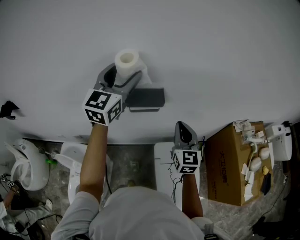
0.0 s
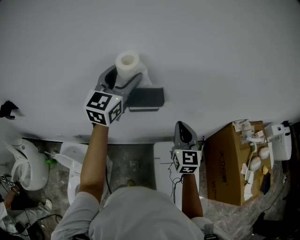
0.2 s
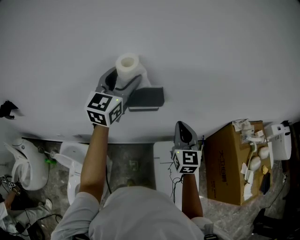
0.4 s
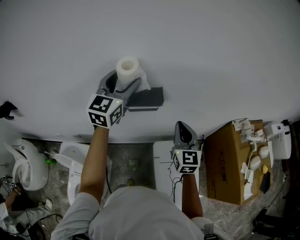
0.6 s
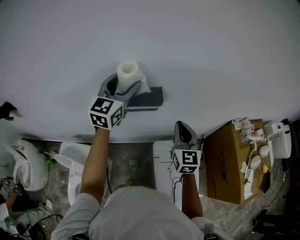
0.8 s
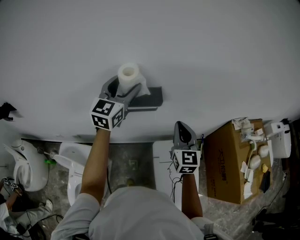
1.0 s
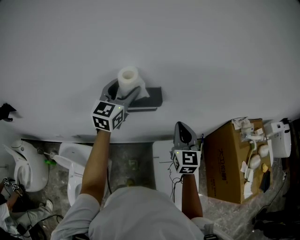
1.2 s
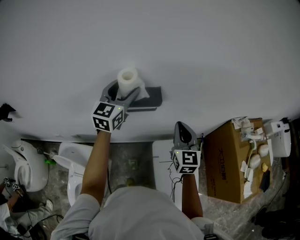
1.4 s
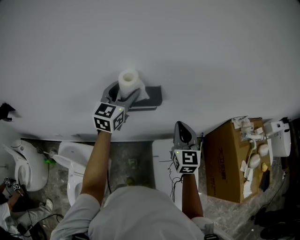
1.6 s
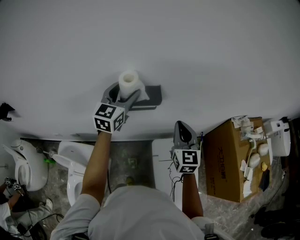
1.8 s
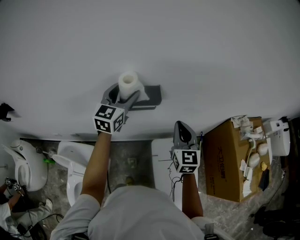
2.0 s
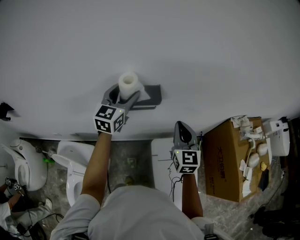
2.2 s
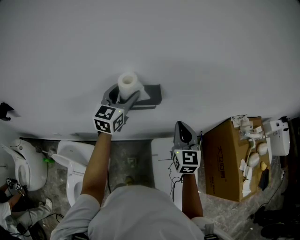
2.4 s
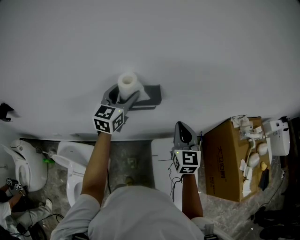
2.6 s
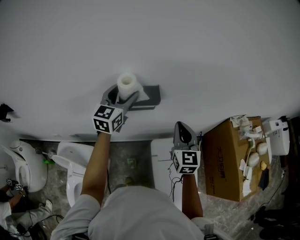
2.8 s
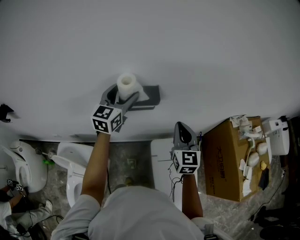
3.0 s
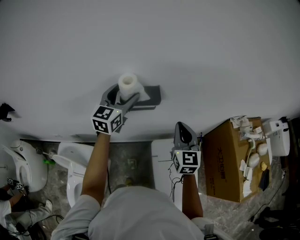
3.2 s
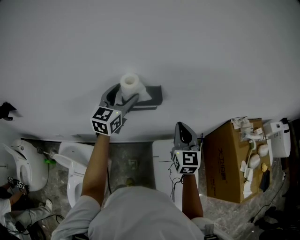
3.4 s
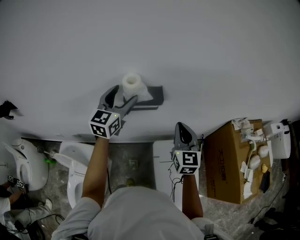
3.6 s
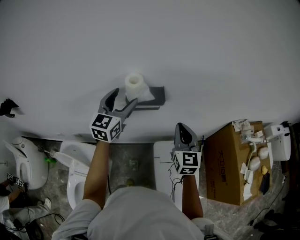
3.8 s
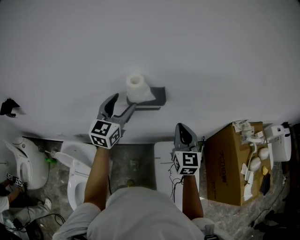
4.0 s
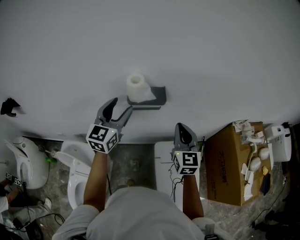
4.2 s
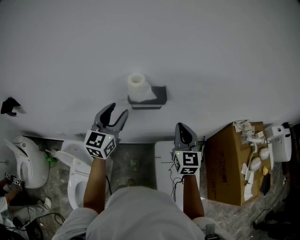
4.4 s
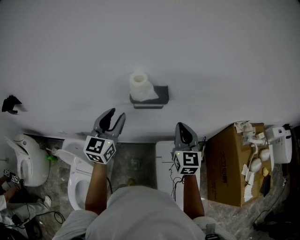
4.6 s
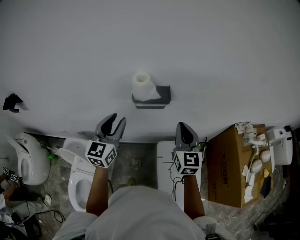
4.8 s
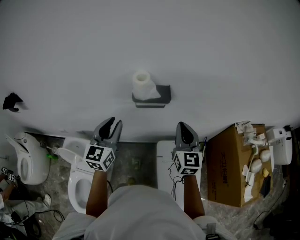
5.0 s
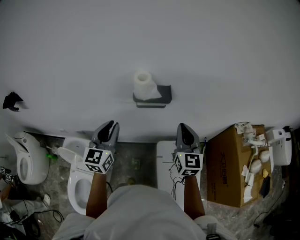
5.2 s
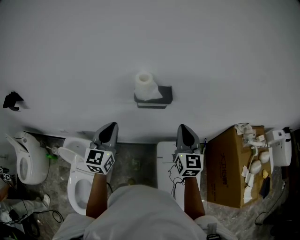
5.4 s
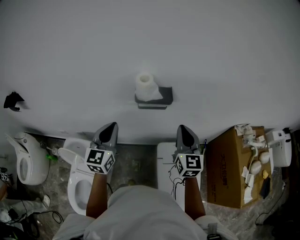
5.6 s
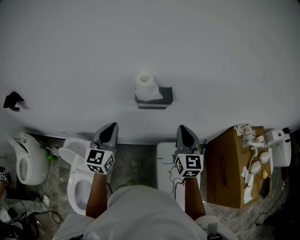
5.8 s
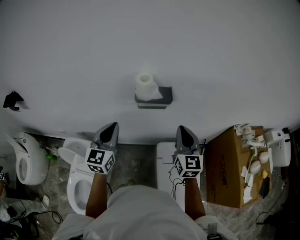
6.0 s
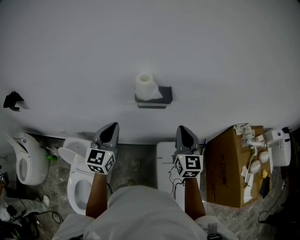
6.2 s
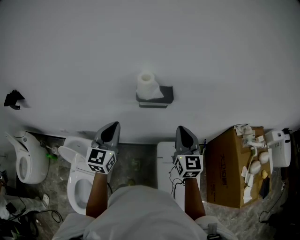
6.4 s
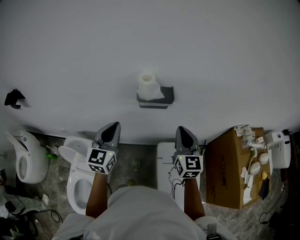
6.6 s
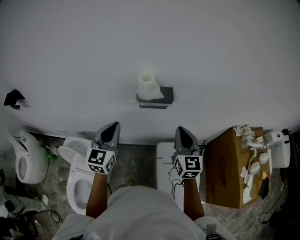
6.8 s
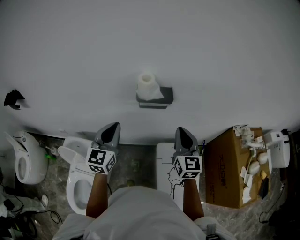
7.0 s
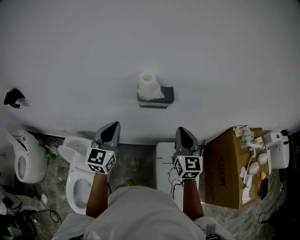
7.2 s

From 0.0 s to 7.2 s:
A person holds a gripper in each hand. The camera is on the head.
From 0.0 s to 1.4 s: The left gripper heads downward, covering approximately 10 cm.
From 1.4 s to 2.8 s: The grippers stay close to where they were, moving slightly.
From 2.8 s to 4.4 s: The left gripper shifts about 10 cm backward.
From 4.4 s to 5.8 s: The left gripper heads backward, covering about 5 cm, and closes.
From 5.8 s to 7.2 s: The grippers make only small movements.

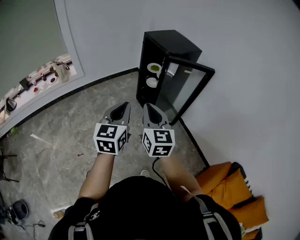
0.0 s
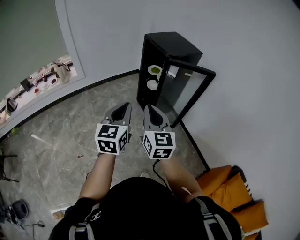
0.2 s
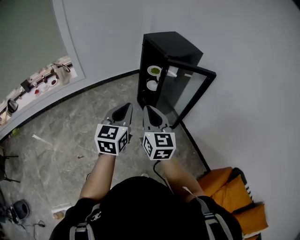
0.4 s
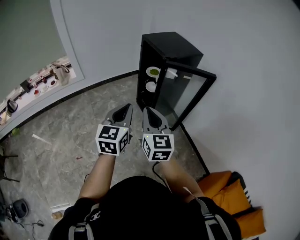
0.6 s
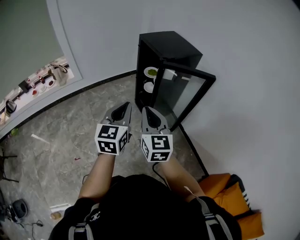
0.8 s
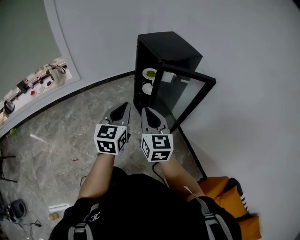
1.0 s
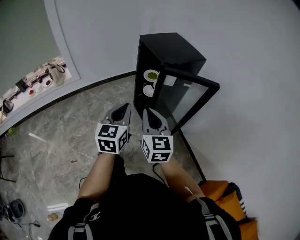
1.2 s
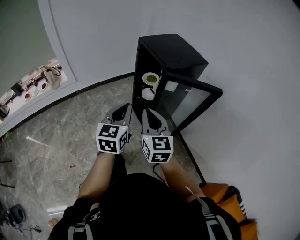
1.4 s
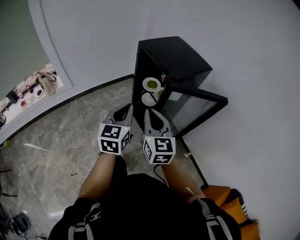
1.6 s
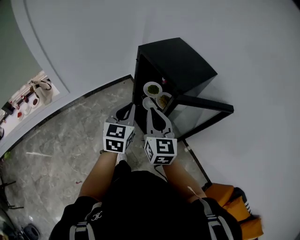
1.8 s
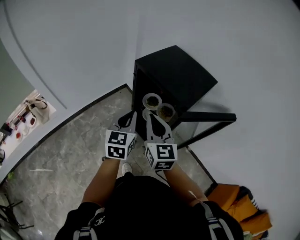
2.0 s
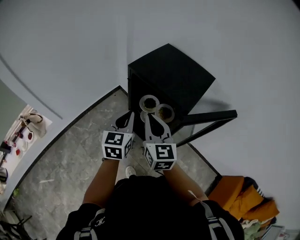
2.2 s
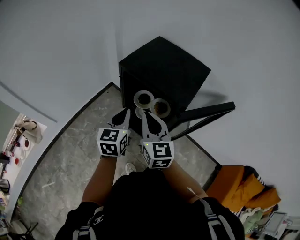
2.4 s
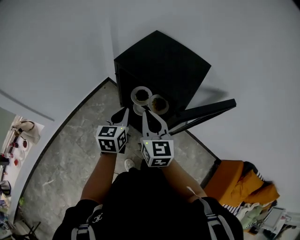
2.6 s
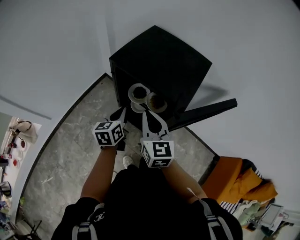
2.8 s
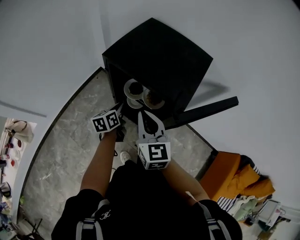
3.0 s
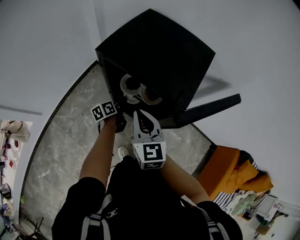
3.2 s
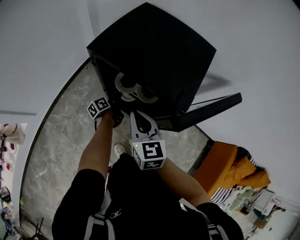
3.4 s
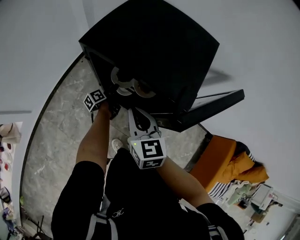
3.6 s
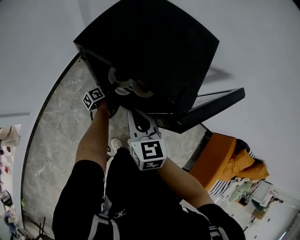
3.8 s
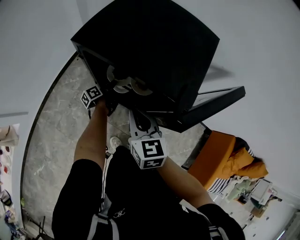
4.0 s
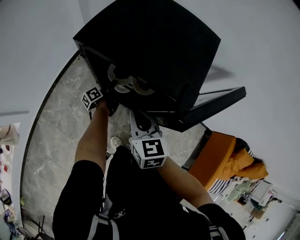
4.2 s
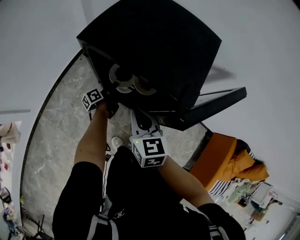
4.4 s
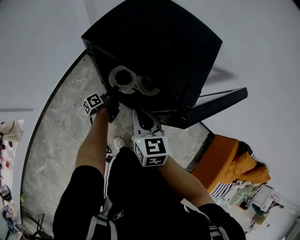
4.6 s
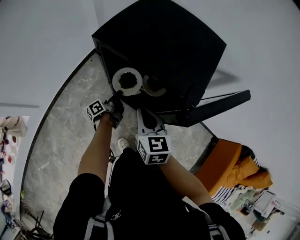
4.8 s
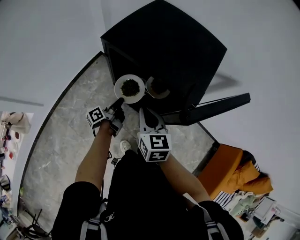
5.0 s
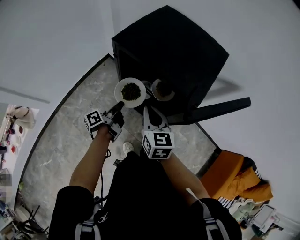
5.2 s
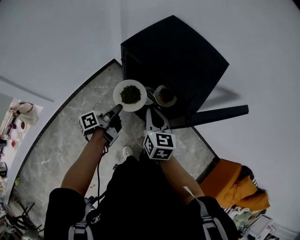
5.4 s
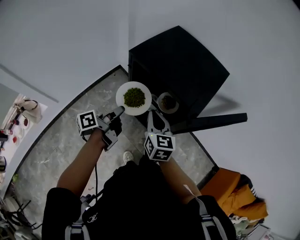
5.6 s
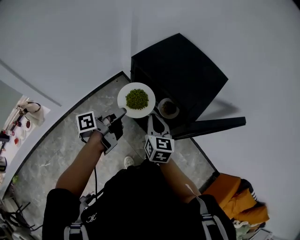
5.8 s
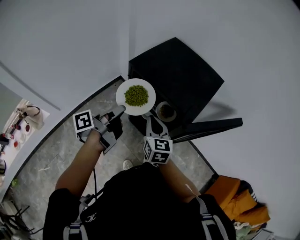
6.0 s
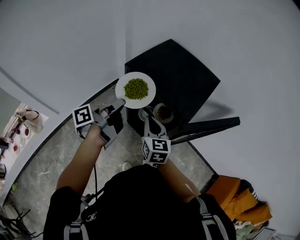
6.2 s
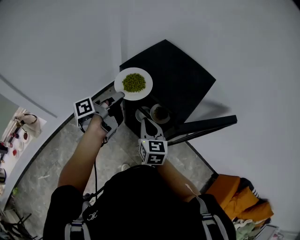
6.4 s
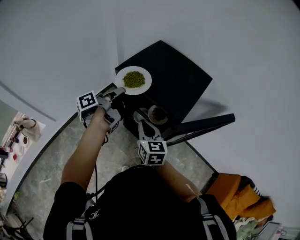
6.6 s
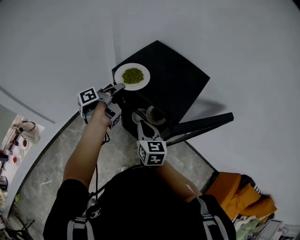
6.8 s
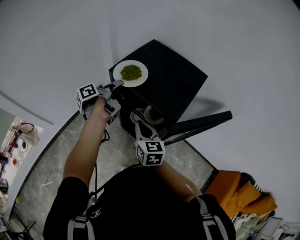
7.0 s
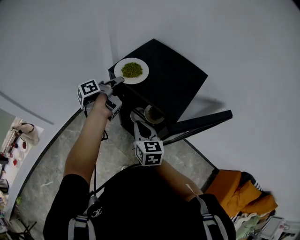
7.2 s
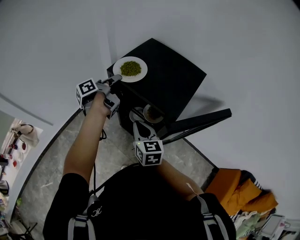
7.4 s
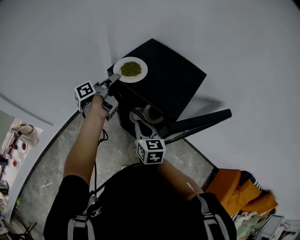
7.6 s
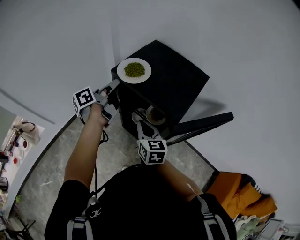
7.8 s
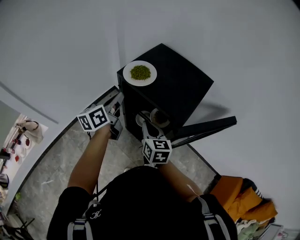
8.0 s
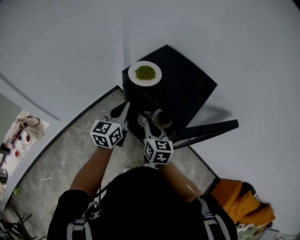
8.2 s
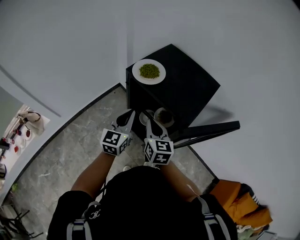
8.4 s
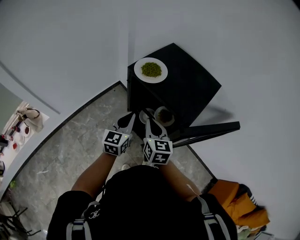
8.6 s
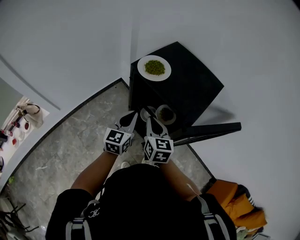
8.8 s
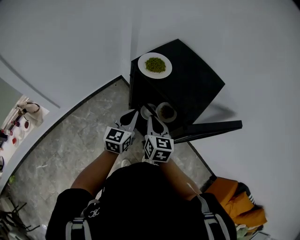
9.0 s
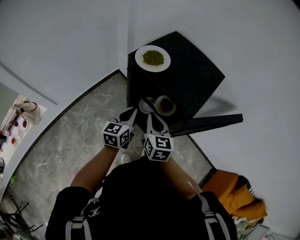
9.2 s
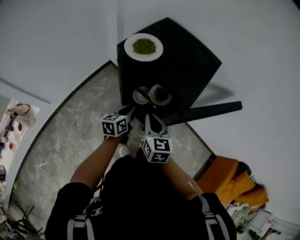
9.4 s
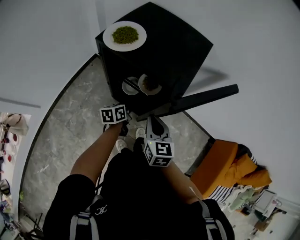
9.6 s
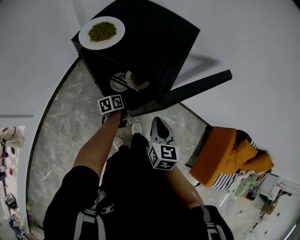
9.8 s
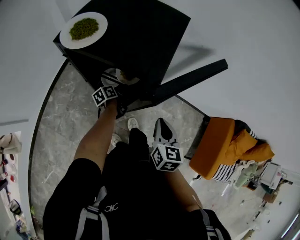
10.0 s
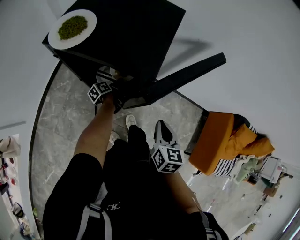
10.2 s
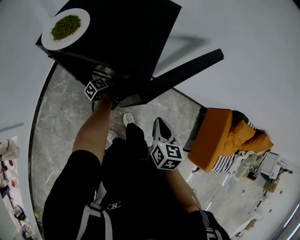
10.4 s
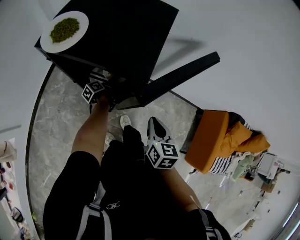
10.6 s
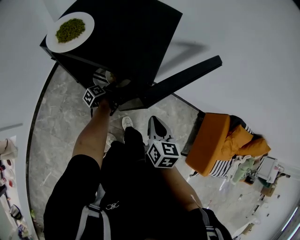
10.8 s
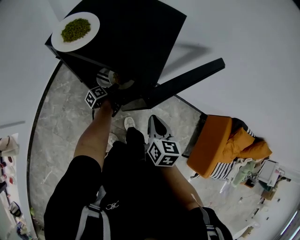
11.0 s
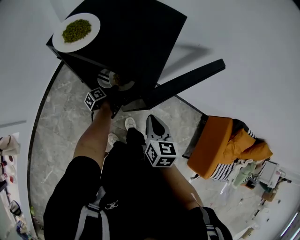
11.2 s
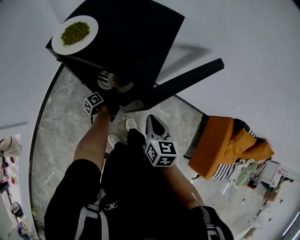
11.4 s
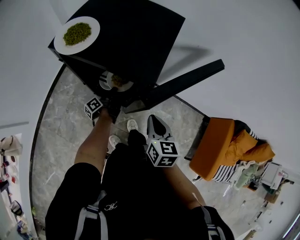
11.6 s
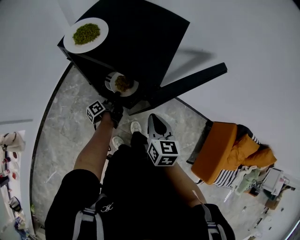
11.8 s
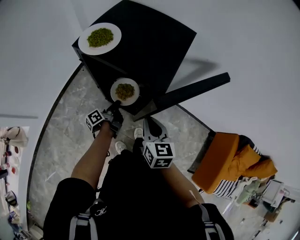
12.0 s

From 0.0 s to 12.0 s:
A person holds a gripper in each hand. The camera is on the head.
From 0.0 s to 1.6 s: The grippers both shift forward by some 30 cm.
From 1.6 s to 3.0 s: The right gripper goes approximately 25 cm forward, and turns by some 20 degrees, while the left gripper heads forward and downward, covering some 40 cm, and rotates about 40 degrees.
From 3.0 s to 4.4 s: The left gripper goes some 20 cm downward and forward, rotates approximately 40 degrees, and opens and closes again. The right gripper moves downward, approximately 10 cm.
From 4.4 s to 6.0 s: The left gripper heads upward and backward, covering approximately 40 cm, while the right gripper moves upward, about 5 cm.
From 6.0 s to 7.6 s: The left gripper goes approximately 15 cm forward, and opens its fingers.
From 7.6 s to 9.0 s: The left gripper is displaced backward and downward by some 15 cm, rolls clockwise, seen from behind, by approximately 70 degrees, and closes up.
From 9.0 s to 10.4 s: The right gripper changes place by some 30 cm, and swivels some 40 degrees; the left gripper moves downward, approximately 35 cm, twists approximately 70 degrees counterclockwise, seen from behind, and opens up.
From 10.4 s to 12.0 s: The right gripper shifts some 10 cm to the left, and swivels roughly 20 degrees, while the left gripper heads upward, backward and to the left, covering roughly 15 cm, changes its angle by about 20 degrees, and closes its fingers.

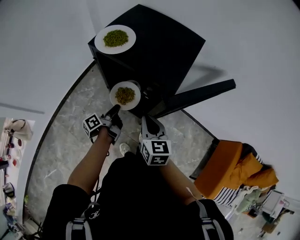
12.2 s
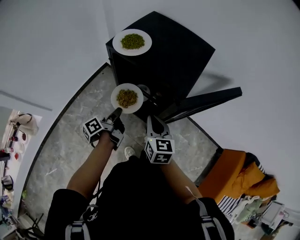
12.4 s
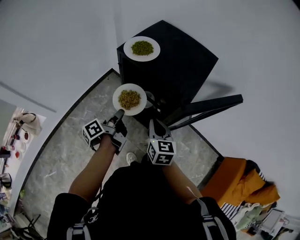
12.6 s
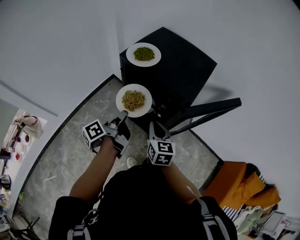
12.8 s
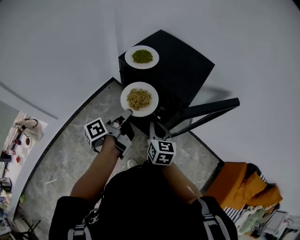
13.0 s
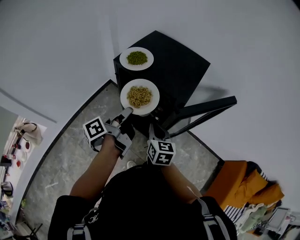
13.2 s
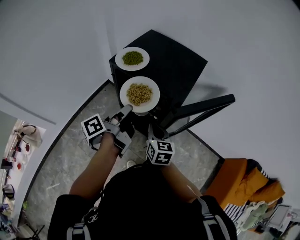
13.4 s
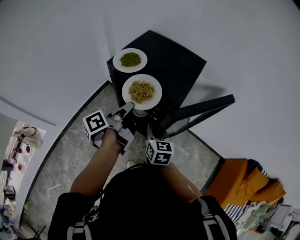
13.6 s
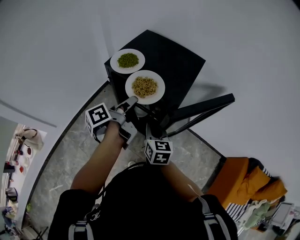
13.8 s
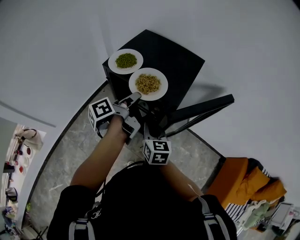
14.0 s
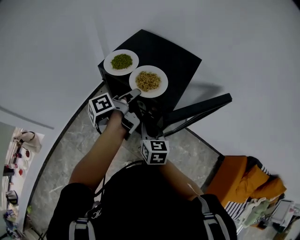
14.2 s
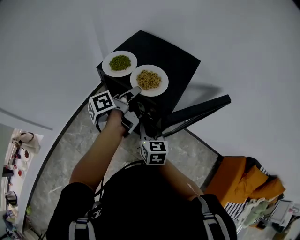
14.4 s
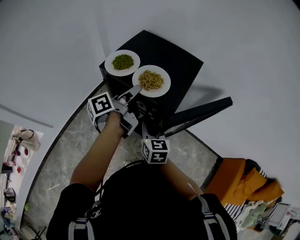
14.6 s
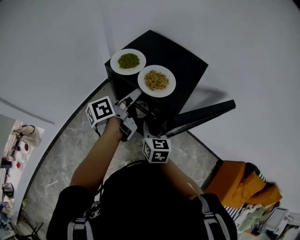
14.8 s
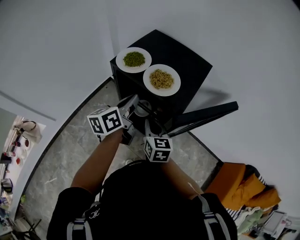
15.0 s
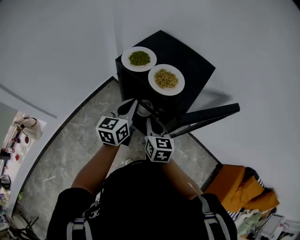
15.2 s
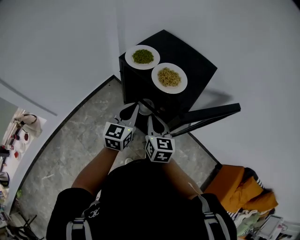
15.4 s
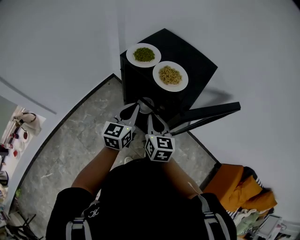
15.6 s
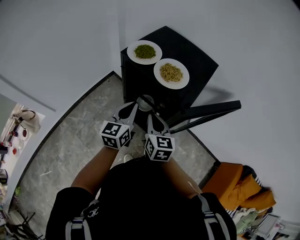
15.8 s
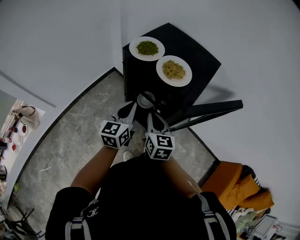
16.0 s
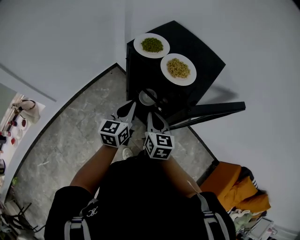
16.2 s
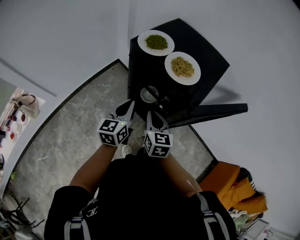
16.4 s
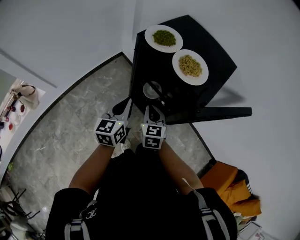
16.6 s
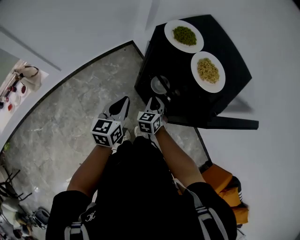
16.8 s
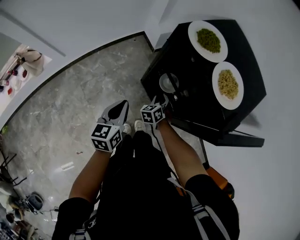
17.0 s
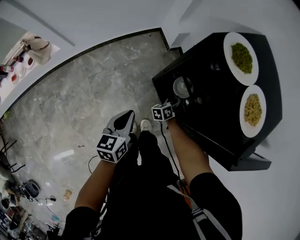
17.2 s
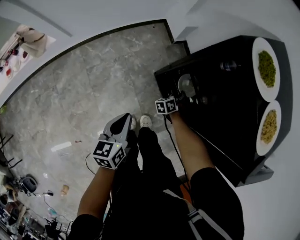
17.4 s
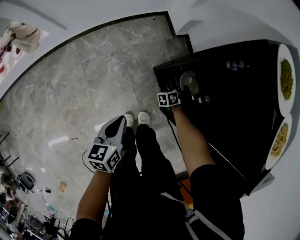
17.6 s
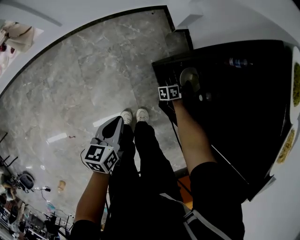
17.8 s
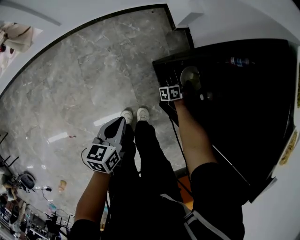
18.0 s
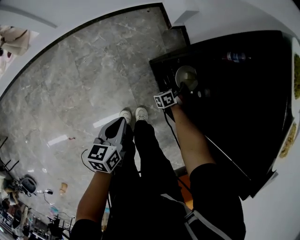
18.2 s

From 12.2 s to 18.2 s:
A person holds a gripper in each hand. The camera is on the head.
From 12.2 s to 13.8 s: The left gripper travels upward by about 20 cm.
From 13.8 s to 15.2 s: The left gripper rolls clockwise, seen from behind, by roughly 70 degrees, and opens, then closes once more.
From 15.2 s to 16.6 s: The left gripper moves downward, to the left and backward, some 10 cm; the right gripper heads downward, covering approximately 10 cm.
From 16.6 s to 18.2 s: The right gripper heads downward and forward, covering roughly 40 cm, rotates around the line of its fingers by approximately 70 degrees, counterclockwise from behind, and opens, then closes once more, while the left gripper moves downward, approximately 25 cm, and rotates approximately 40 degrees.
